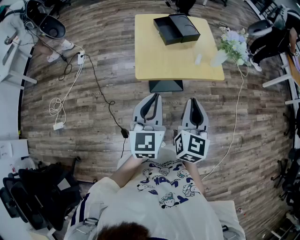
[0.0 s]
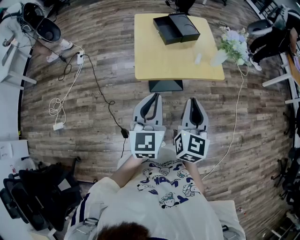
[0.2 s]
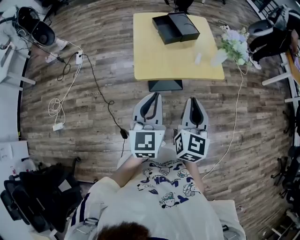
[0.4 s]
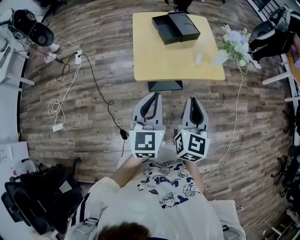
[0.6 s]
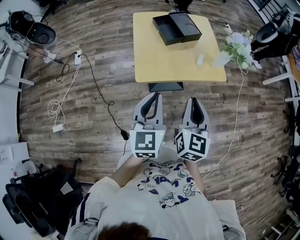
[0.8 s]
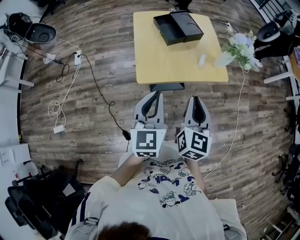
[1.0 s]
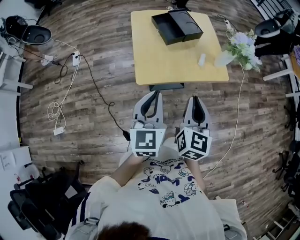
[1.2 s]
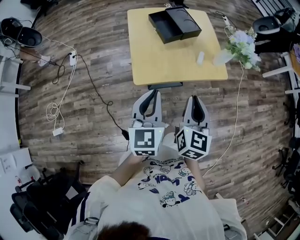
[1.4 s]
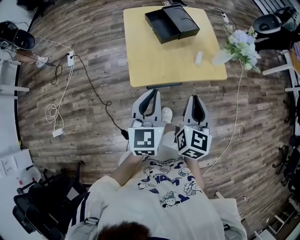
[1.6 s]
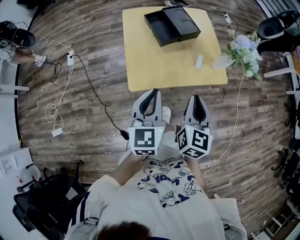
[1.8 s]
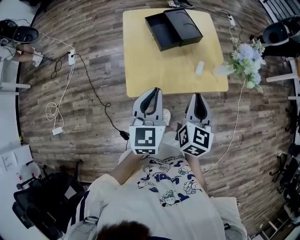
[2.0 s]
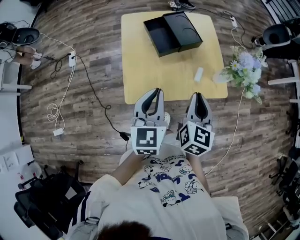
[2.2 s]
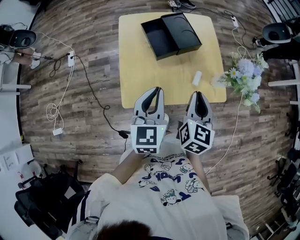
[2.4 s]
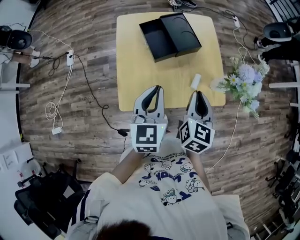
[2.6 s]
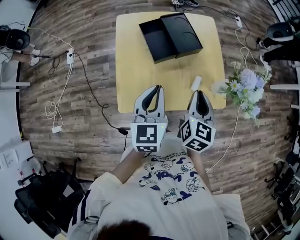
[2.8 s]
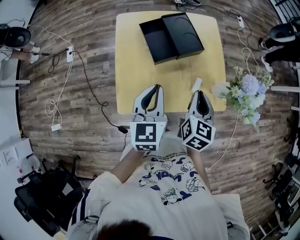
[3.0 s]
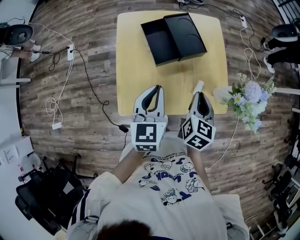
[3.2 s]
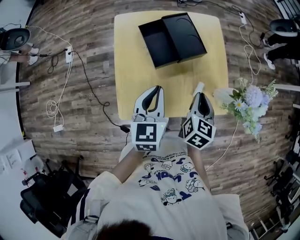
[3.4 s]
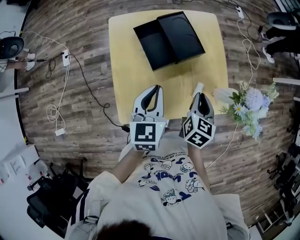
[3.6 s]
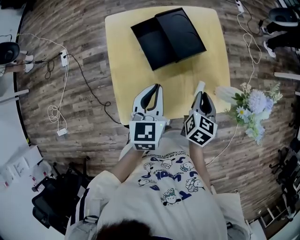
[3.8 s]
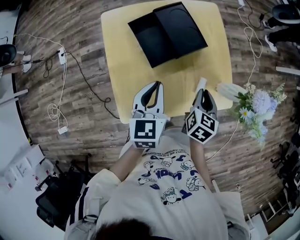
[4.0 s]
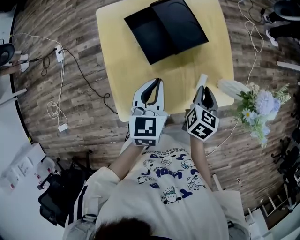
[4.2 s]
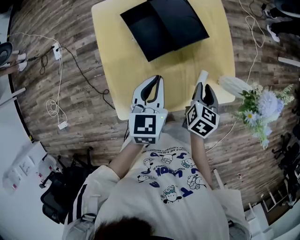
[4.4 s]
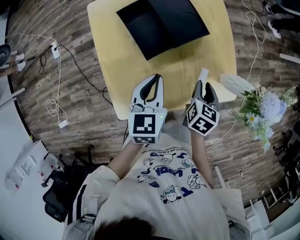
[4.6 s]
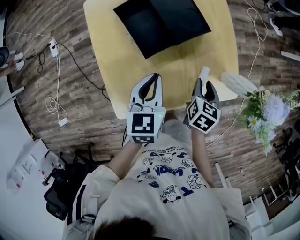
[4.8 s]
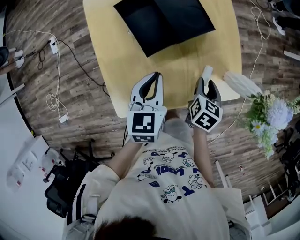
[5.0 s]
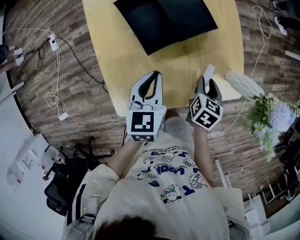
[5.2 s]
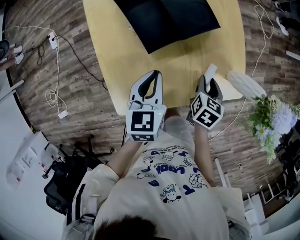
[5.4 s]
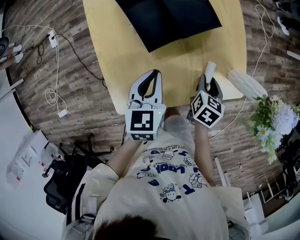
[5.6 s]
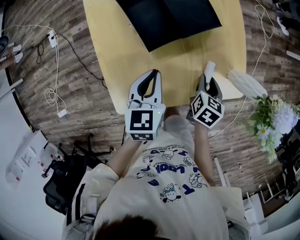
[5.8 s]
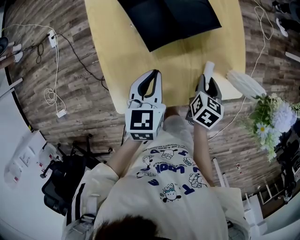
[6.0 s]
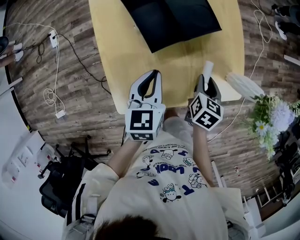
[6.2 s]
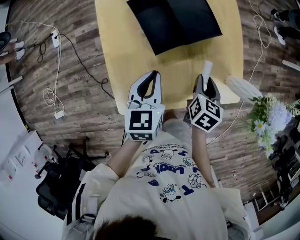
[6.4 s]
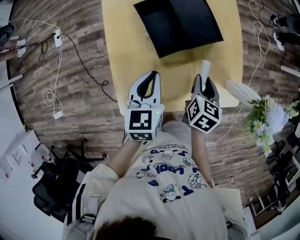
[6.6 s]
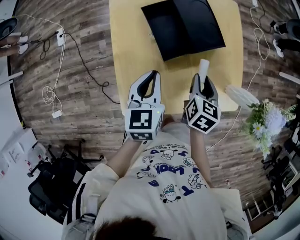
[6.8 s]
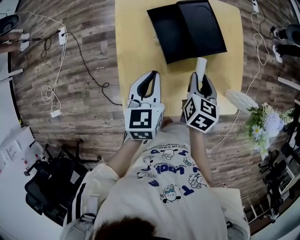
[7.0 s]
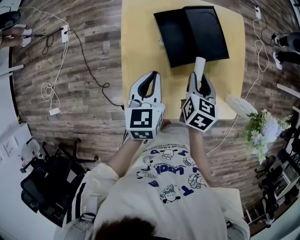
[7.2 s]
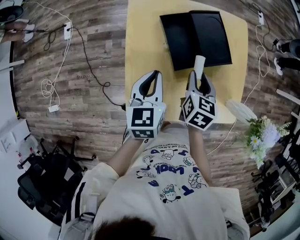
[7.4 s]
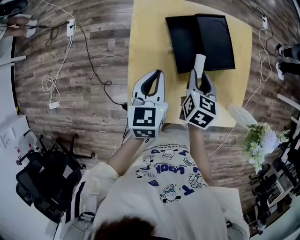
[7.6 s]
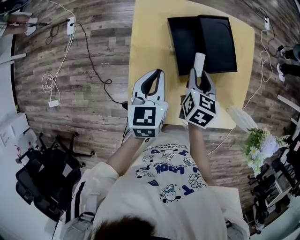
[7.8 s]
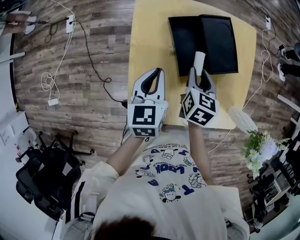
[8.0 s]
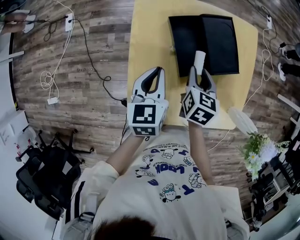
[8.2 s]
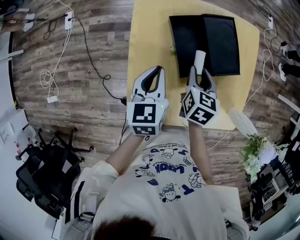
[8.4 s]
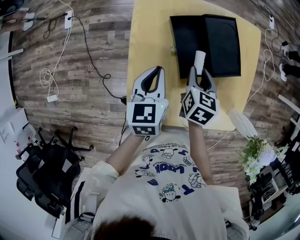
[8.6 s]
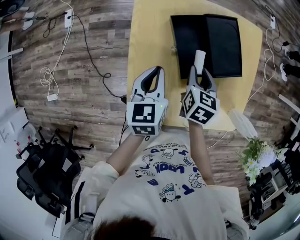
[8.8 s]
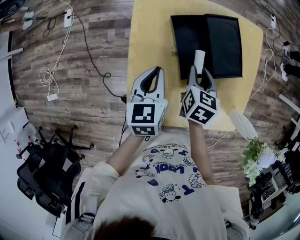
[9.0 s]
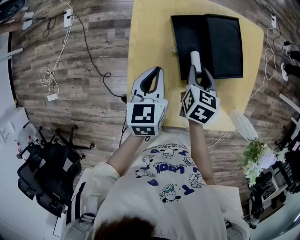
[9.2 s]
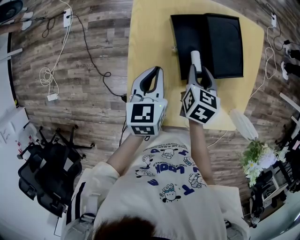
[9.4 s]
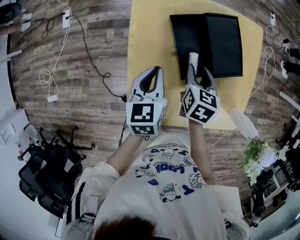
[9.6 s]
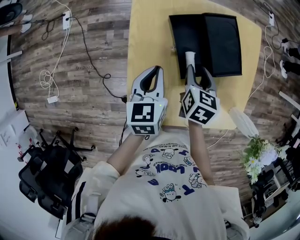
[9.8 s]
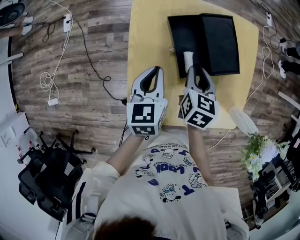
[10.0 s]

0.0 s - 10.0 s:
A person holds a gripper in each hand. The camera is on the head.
0.0 s - 1.4 s: Both grippers travel together forward, roughly 5 cm.
1.4 s - 2.8 s: The grippers both shift forward by roughly 25 cm.
2.8 s - 4.2 s: The right gripper is displaced downward and forward by about 10 cm, and turns by approximately 20 degrees. Meanwhile the left gripper heads forward and downward, covering approximately 10 cm.
4.2 s - 5.8 s: Both grippers move downward, about 10 cm. The right gripper opens.
5.8 s - 7.2 s: The right gripper goes approximately 20 cm to the left, upward and forward, and swivels roughly 20 degrees. Meanwhile the left gripper shifts roughly 10 cm to the left and upward.
7.2 s - 8.6 s: The right gripper travels forward by some 5 cm; the left gripper moves roughly 5 cm.
8.6 s - 10.0 s: The grippers move only a little.

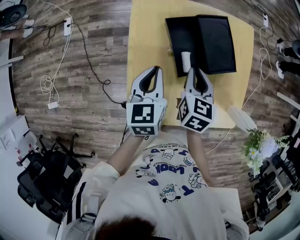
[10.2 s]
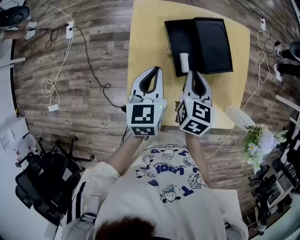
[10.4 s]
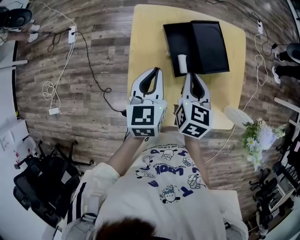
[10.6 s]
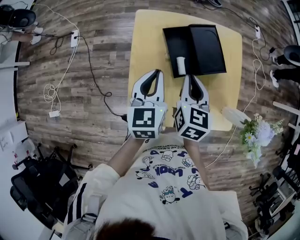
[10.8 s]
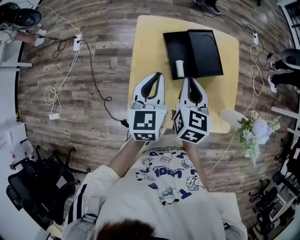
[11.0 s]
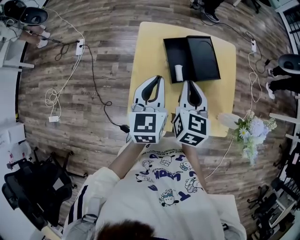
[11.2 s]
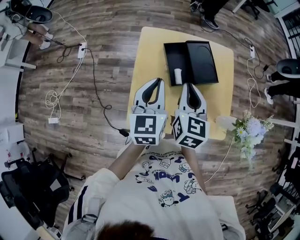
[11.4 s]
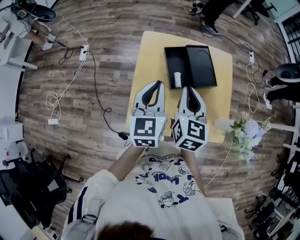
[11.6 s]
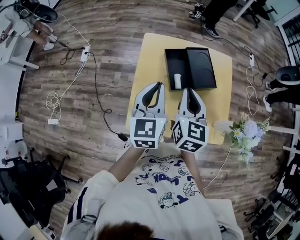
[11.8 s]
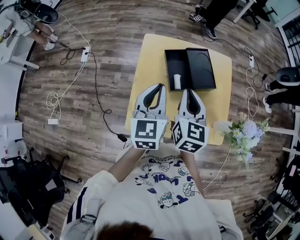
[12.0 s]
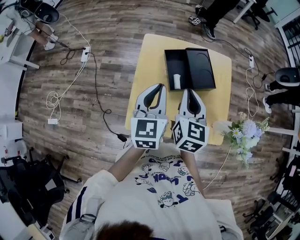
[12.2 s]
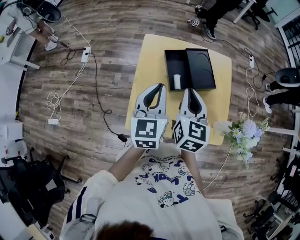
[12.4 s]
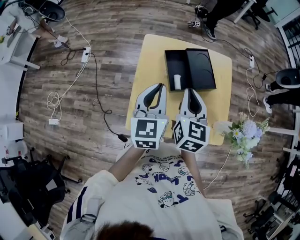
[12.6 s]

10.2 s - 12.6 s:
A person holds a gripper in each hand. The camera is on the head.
10.2 s - 11.4 s: Both grippers move upward and backward, roughly 15 cm.
11.4 s - 12.6 s: There are only small adjustments of the grippers.

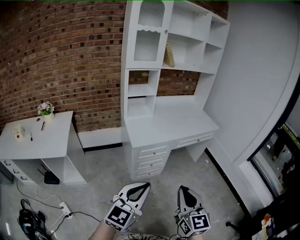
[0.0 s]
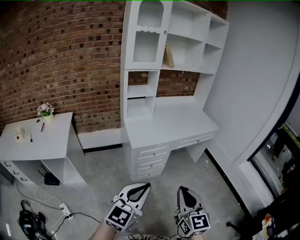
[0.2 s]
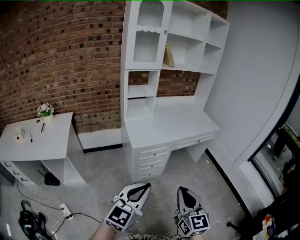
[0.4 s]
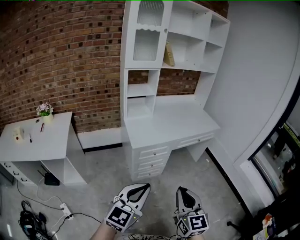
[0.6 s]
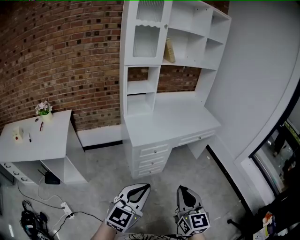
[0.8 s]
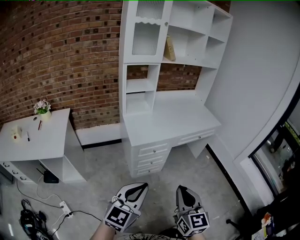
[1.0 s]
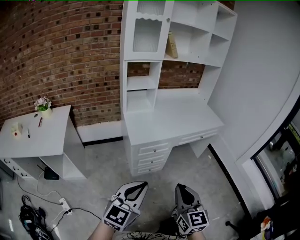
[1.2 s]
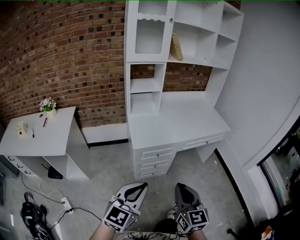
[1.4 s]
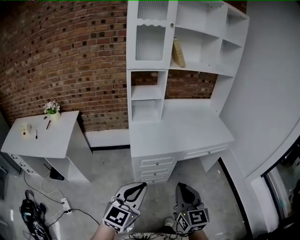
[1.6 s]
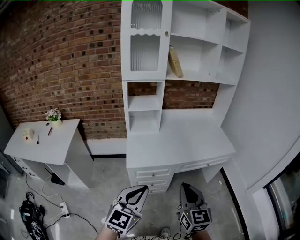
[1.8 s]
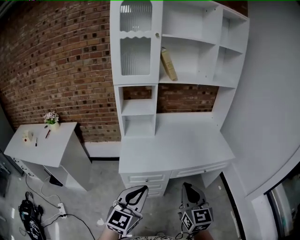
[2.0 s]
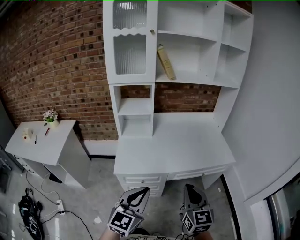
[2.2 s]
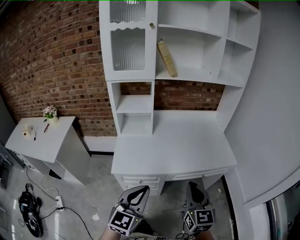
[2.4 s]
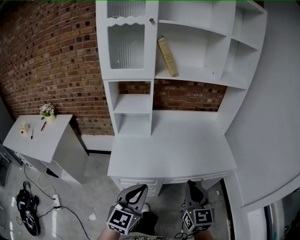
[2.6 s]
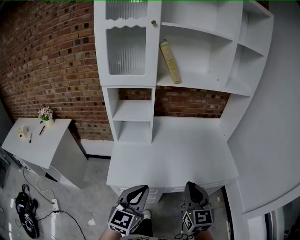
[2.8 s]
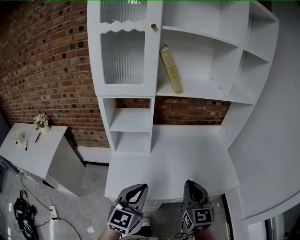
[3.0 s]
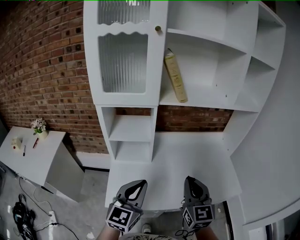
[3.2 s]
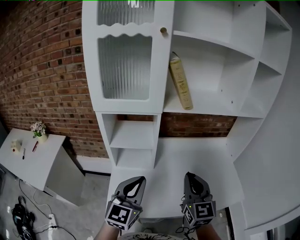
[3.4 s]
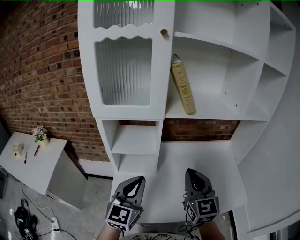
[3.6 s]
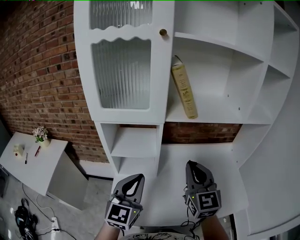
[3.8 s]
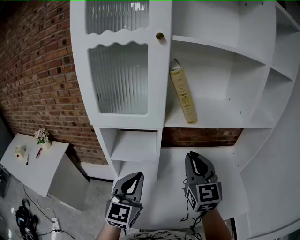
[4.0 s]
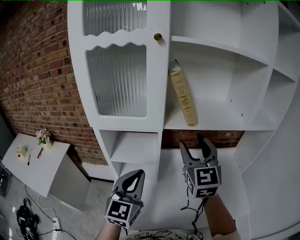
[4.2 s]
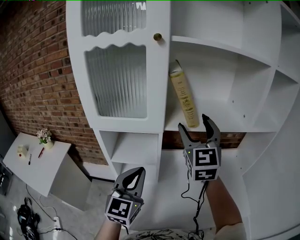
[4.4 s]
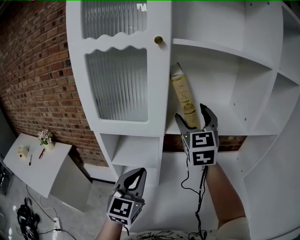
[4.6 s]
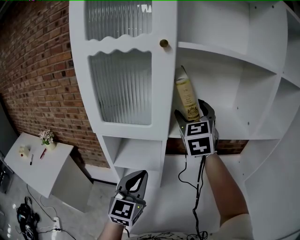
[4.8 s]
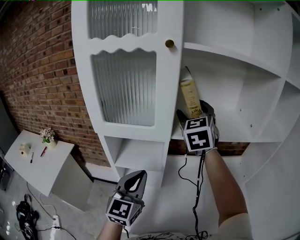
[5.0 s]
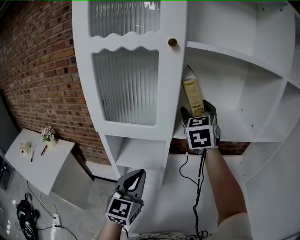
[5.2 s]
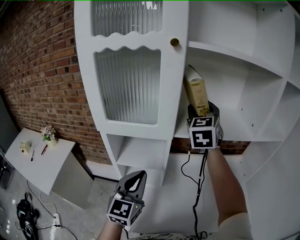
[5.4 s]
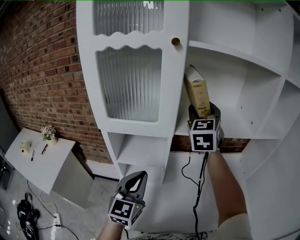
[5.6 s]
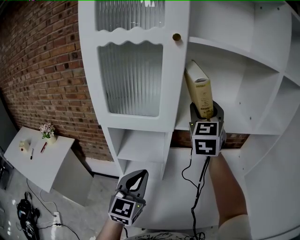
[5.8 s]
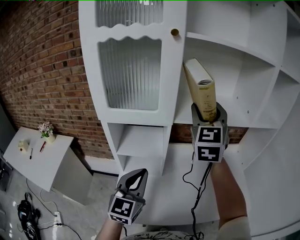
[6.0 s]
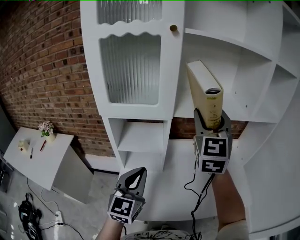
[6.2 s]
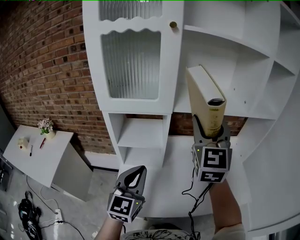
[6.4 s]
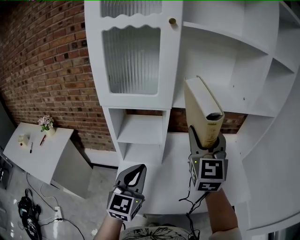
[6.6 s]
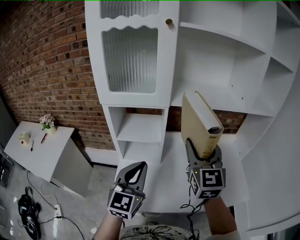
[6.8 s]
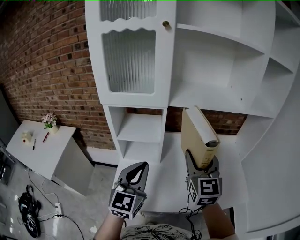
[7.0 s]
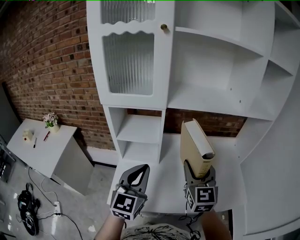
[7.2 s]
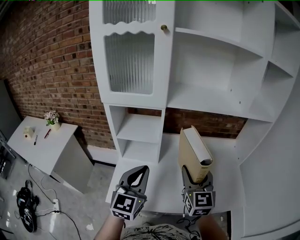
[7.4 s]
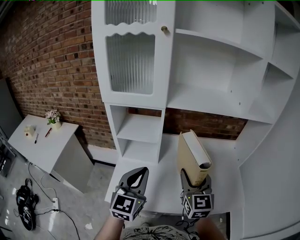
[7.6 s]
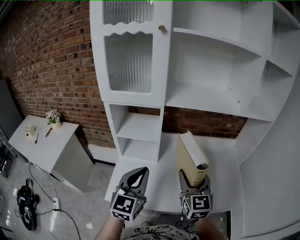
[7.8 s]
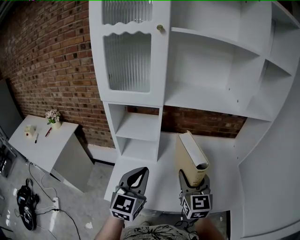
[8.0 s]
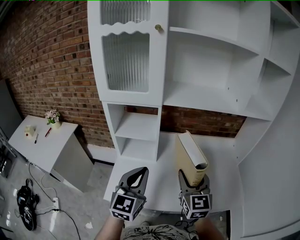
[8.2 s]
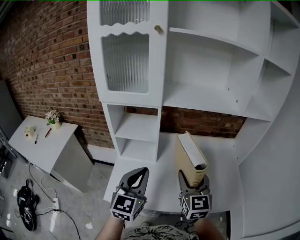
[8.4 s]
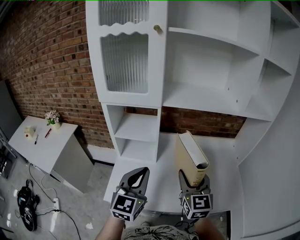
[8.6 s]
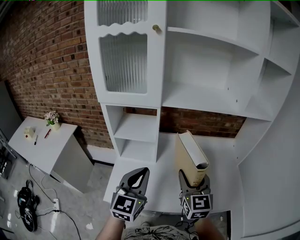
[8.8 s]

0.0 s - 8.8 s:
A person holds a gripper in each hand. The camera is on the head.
0.0 s - 1.4 s: Both grippers move forward, about 10 cm.
1.4 s - 3.0 s: Both grippers are carried forward and to the right, about 50 cm.
3.0 s - 4.4 s: The left gripper heads forward, covering roughly 25 cm. Meanwhile the right gripper travels forward and upward by some 40 cm, changes its angle by roughly 20 degrees, and opens.
4.4 s - 5.8 s: The right gripper moves forward, approximately 5 cm.
5.8 s - 7.4 s: The right gripper moves backward and downward, roughly 30 cm, and rotates roughly 20 degrees. Meanwhile the left gripper goes about 10 cm backward and to the right.
7.4 s - 8.8 s: There are only small adjustments of the grippers.

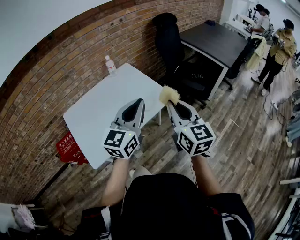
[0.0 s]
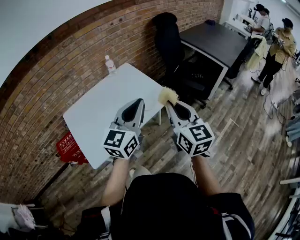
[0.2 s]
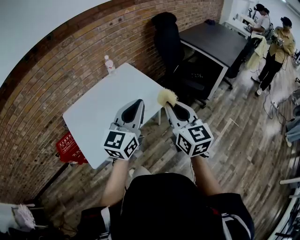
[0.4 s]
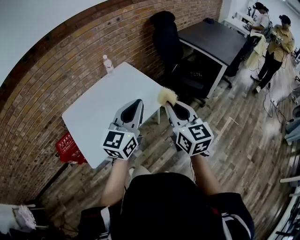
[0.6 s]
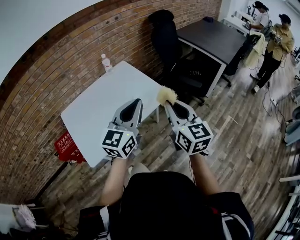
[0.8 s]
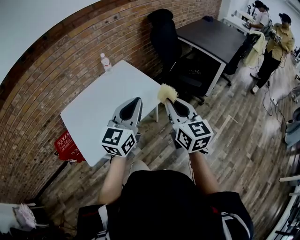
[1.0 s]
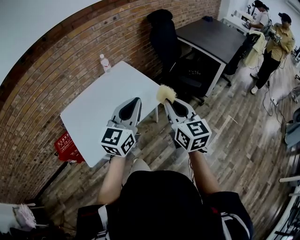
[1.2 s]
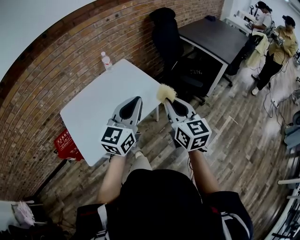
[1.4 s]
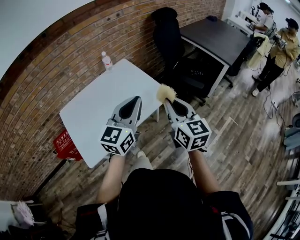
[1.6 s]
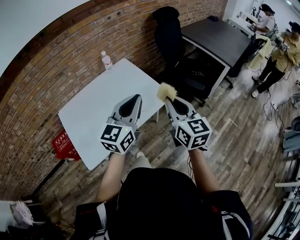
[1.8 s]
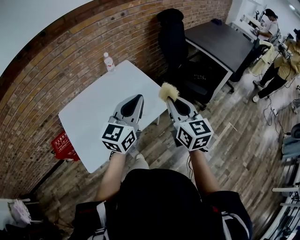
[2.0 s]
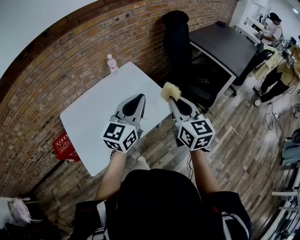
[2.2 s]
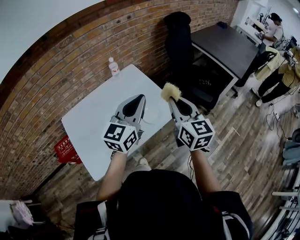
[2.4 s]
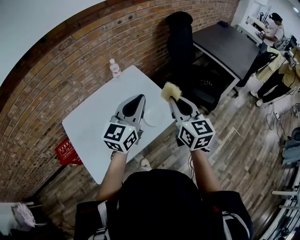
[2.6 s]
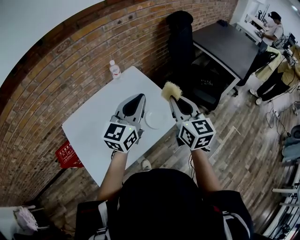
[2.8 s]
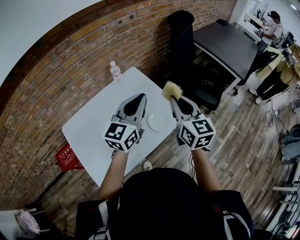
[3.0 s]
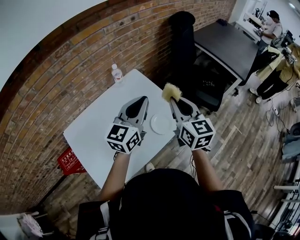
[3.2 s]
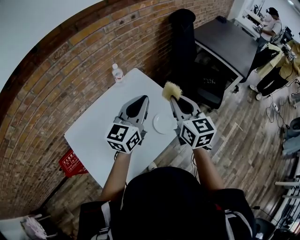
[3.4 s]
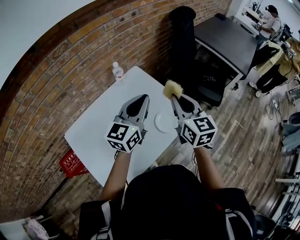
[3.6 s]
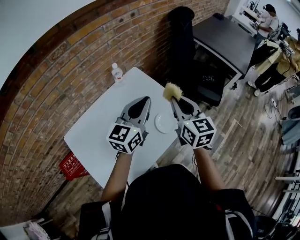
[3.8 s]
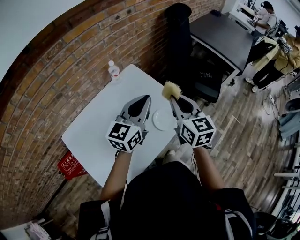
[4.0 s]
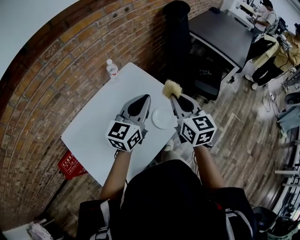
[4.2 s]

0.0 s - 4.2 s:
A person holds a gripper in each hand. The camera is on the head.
0.0 s - 1.4 s: The grippers stay close to where they were, moving slightly.
1.4 s - 2.8 s: The two grippers go some 20 cm forward and to the left.
2.8 s - 4.2 s: The left gripper travels downward by about 5 cm; the right gripper travels to the left by approximately 5 cm.
